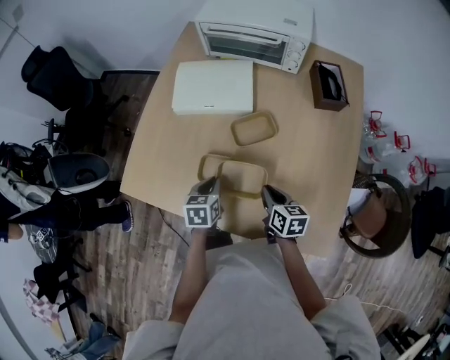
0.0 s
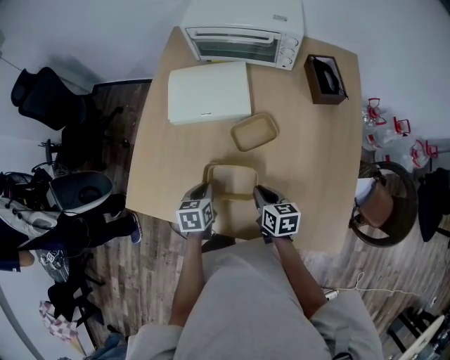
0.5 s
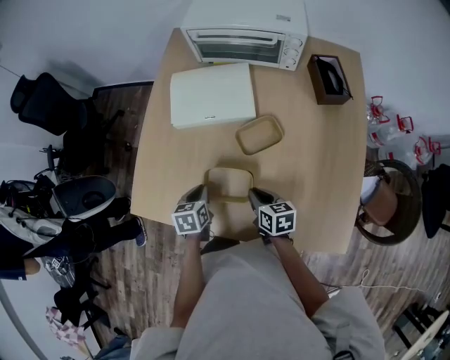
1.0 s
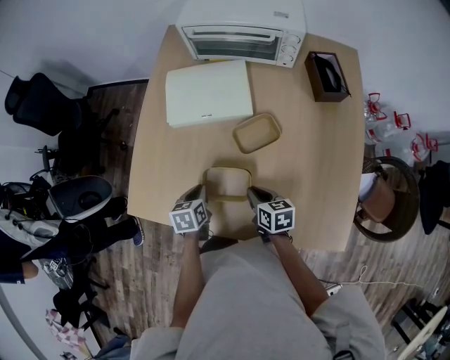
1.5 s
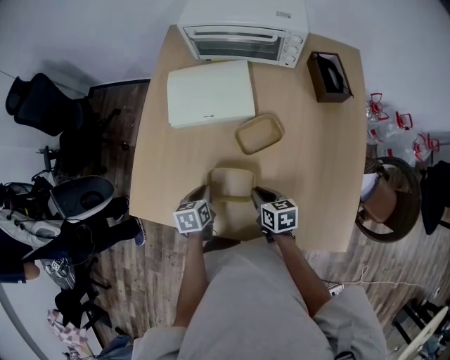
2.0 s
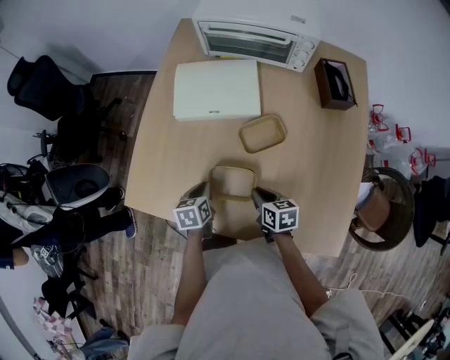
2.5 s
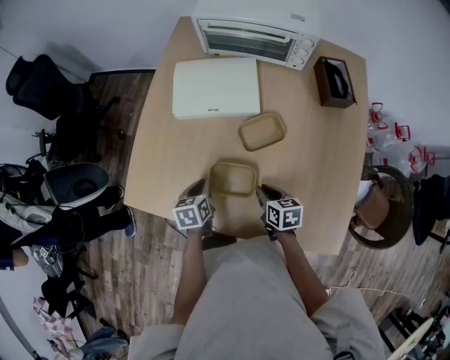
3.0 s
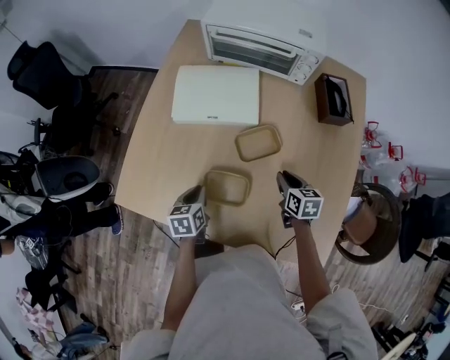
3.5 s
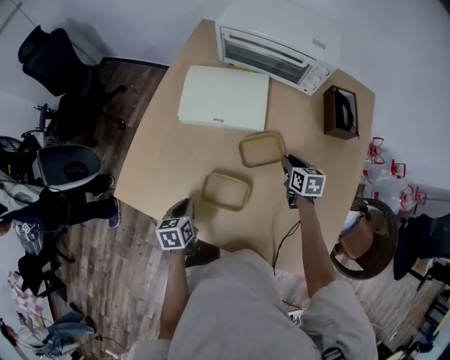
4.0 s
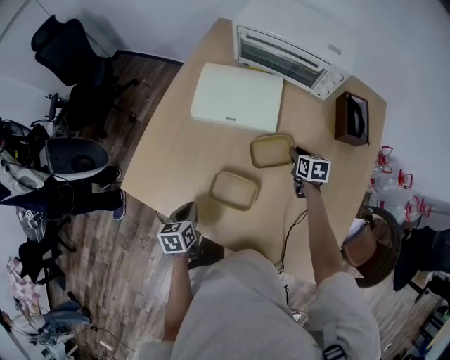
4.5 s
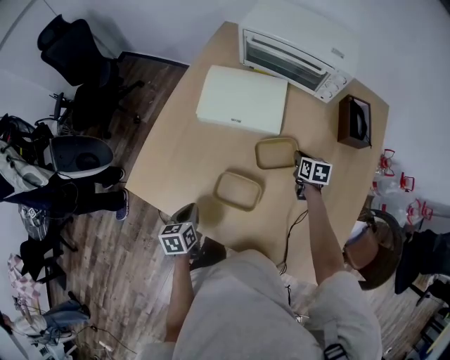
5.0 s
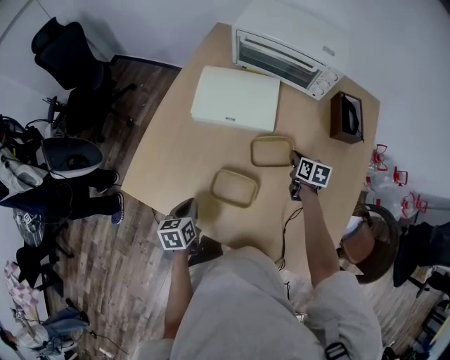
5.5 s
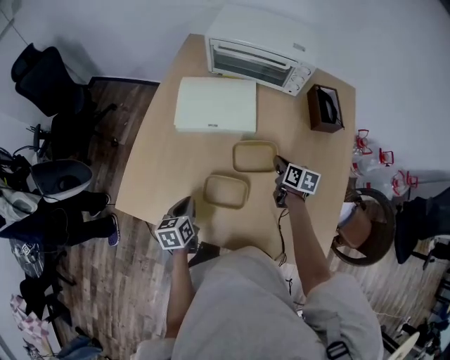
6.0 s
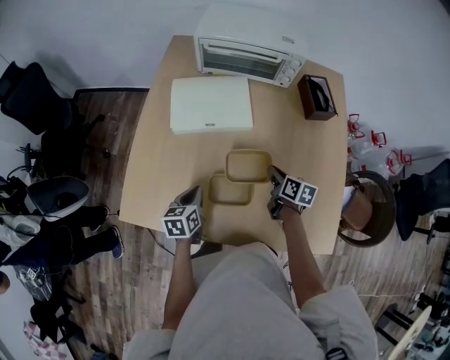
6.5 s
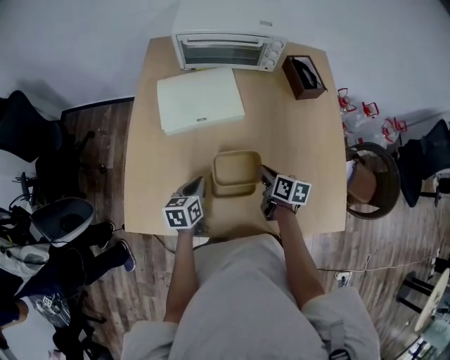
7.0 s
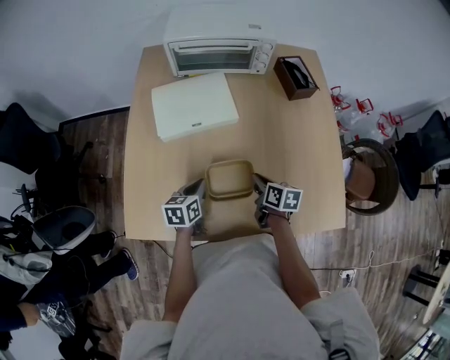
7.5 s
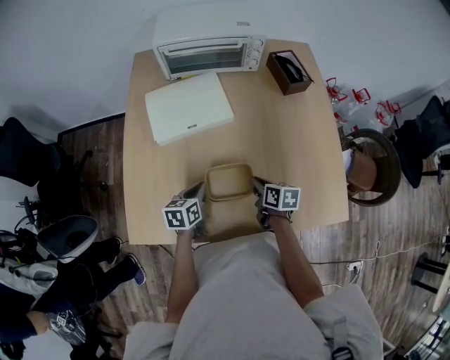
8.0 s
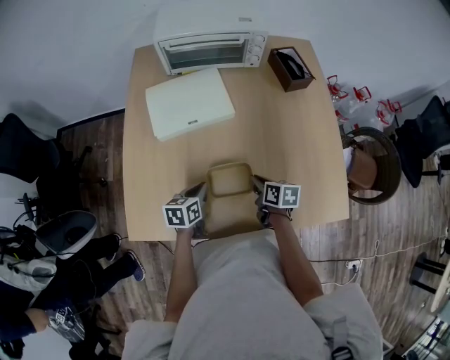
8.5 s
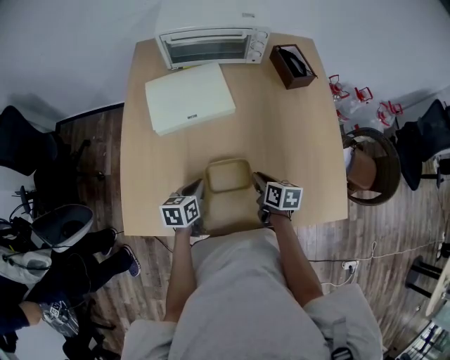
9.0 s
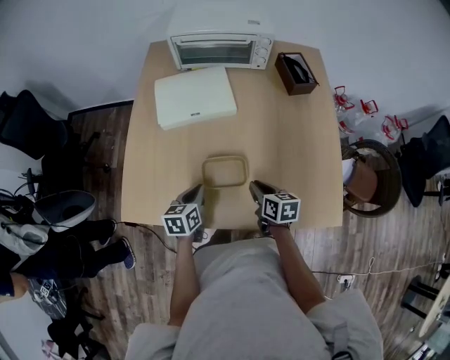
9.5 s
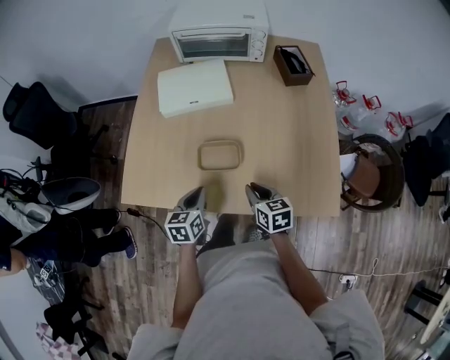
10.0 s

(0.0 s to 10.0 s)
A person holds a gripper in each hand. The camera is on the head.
0.0 s - 2.0 s: The two grippers go some 5 cm to the left.
2.0 s - 4.0 s: The right gripper moves forward and to the right, about 20 cm, while the left gripper shifts by roughly 5 cm.
4.0 s - 6.0 s: There are only small adjustments of the grippers.
6.0 s - 8.0 s: The left gripper ends up about 5 cm from where it was, and rotates about 30 degrees. Meanwhile the right gripper heads backward and to the left, covering about 20 cm.
8.0 s - 10.0 s: The right gripper heads backward and upward, covering roughly 15 cm, and changes its angle by some 30 degrees. The left gripper travels backward by about 15 cm.

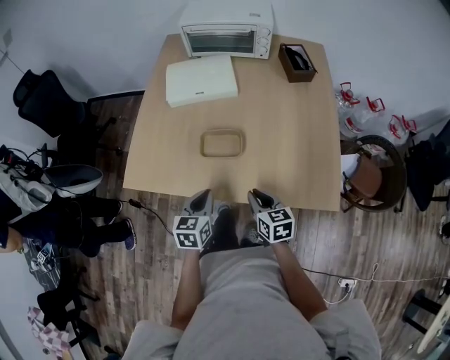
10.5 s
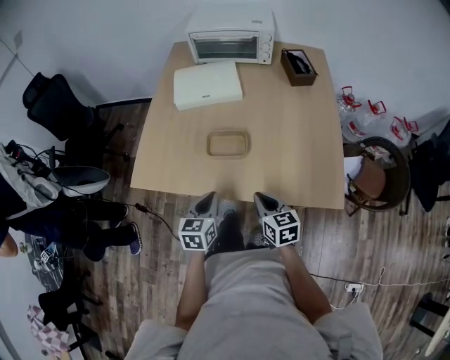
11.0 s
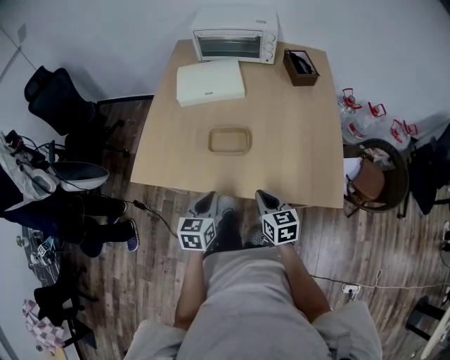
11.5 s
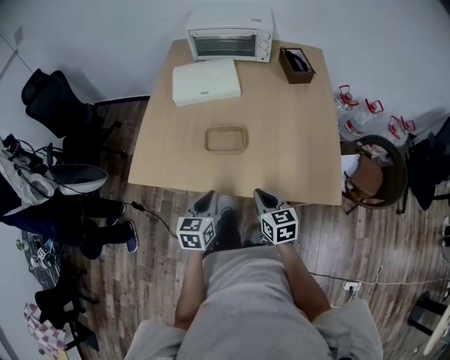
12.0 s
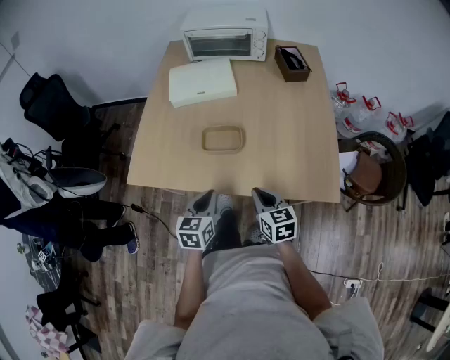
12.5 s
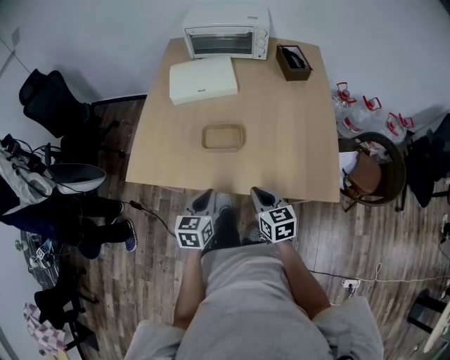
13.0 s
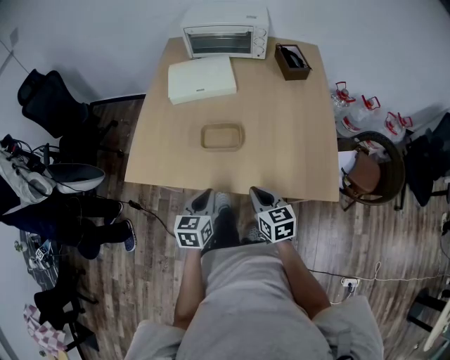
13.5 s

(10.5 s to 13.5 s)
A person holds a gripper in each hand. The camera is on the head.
10.5 s - 12.0 s: The grippers make only small movements.
12.0 s - 13.5 s: Both grippers stay put.

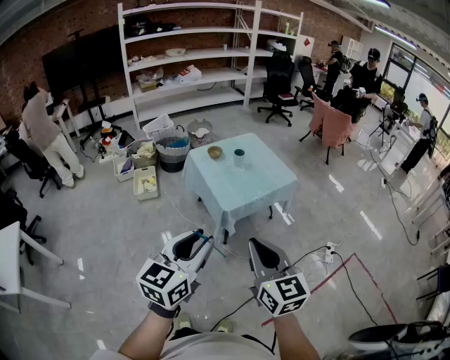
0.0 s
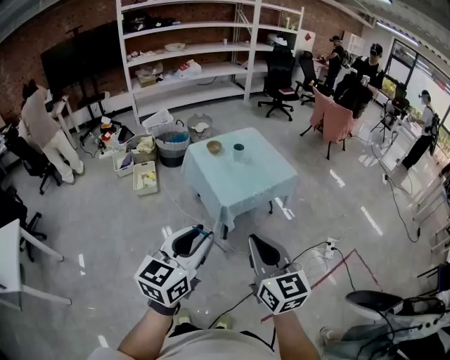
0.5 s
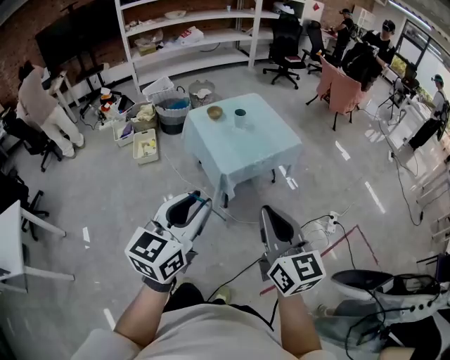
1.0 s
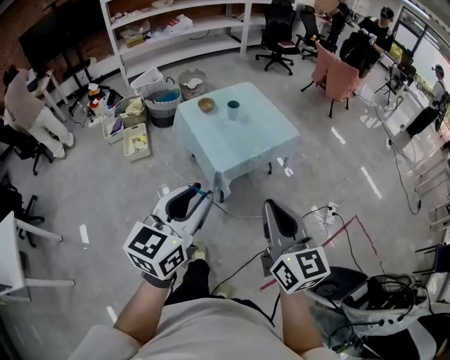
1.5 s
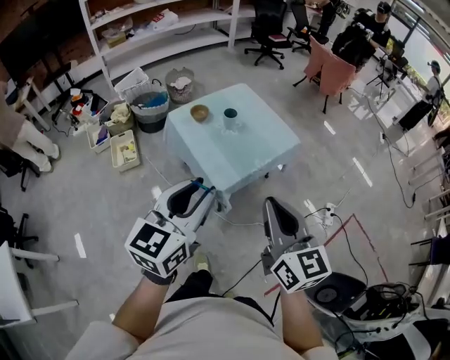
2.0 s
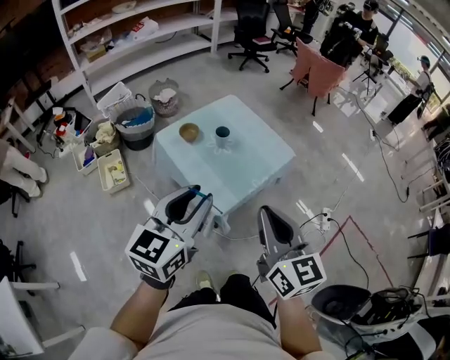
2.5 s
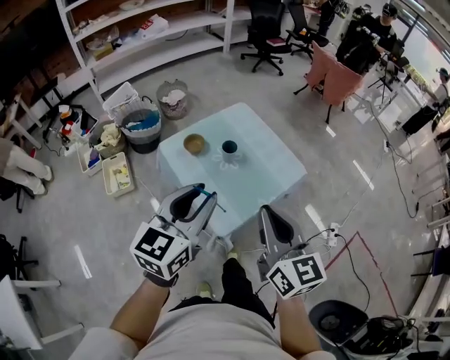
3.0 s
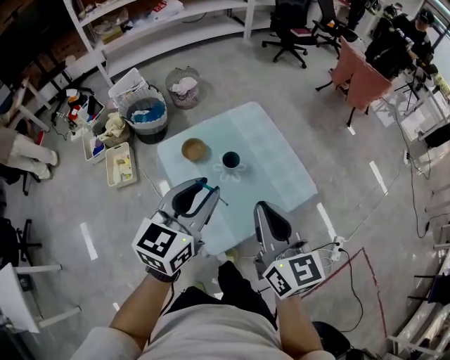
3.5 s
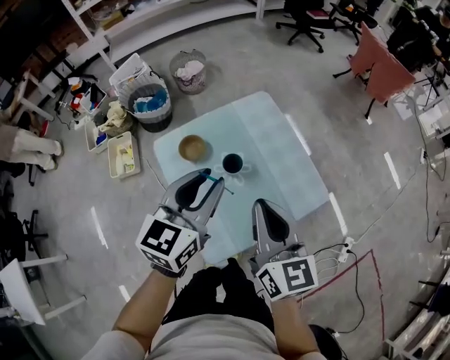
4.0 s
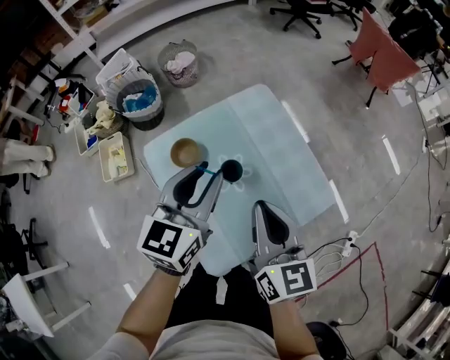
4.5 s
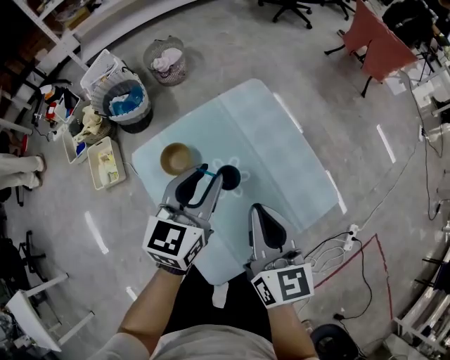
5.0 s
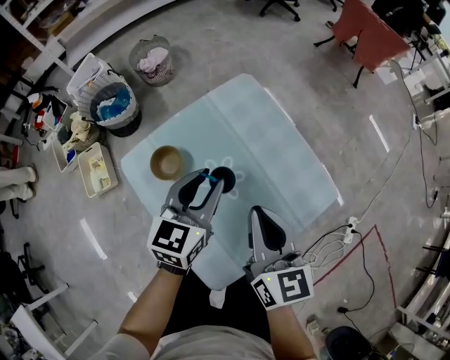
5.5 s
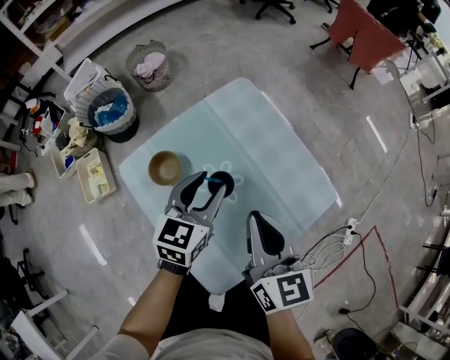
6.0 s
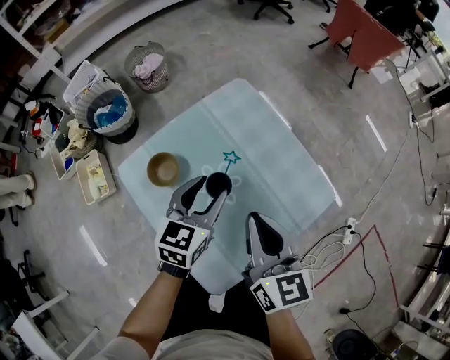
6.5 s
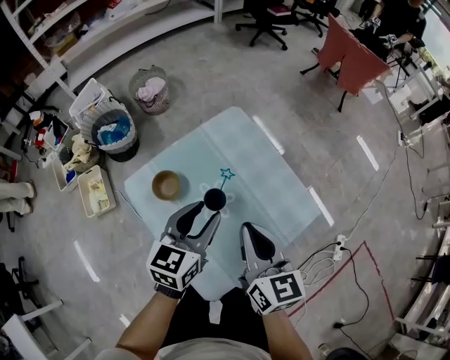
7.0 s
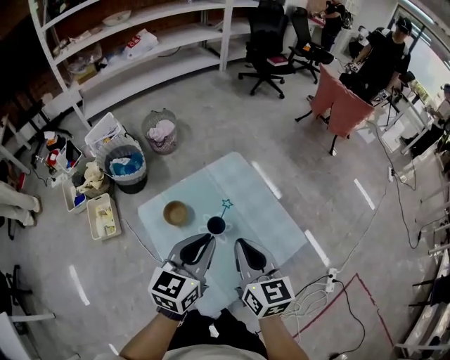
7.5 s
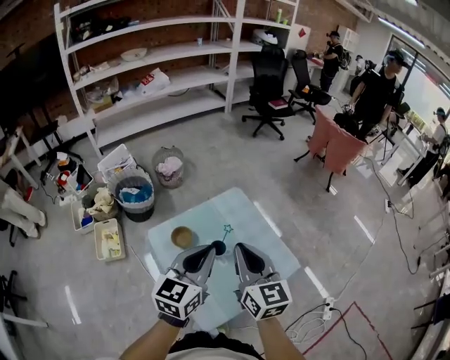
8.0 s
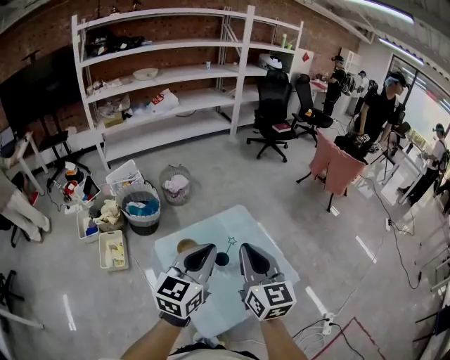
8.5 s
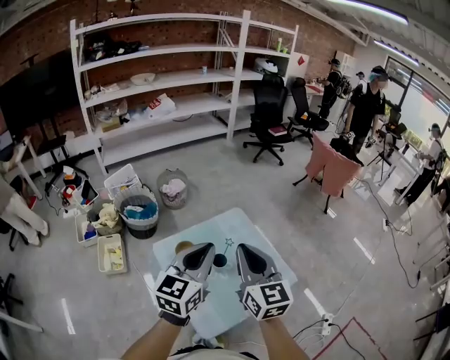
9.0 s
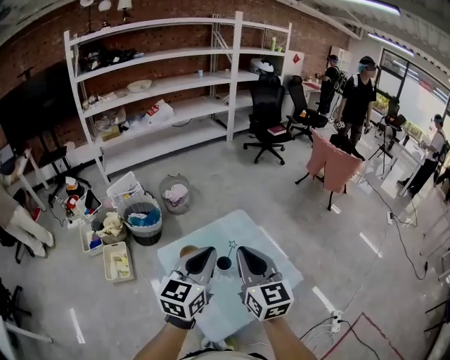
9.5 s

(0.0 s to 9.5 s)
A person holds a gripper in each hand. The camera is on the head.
0.0 s - 2.0 s: Both grippers travel together forward, some 20 cm.
2.0 s - 4.0 s: The pair of grippers is taken forward, approximately 50 cm.
4.0 s - 5.5 s: Both grippers travel together downward and forward, some 20 cm.
5.5 s - 7.5 s: The right gripper goes roughly 10 cm upward. The left gripper travels upward and backward by some 20 cm.
7.5 s - 9.5 s: Both grippers move upward, roughly 15 cm.

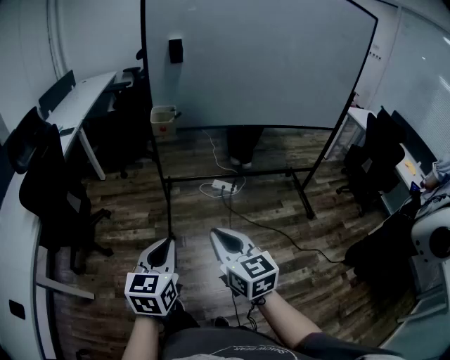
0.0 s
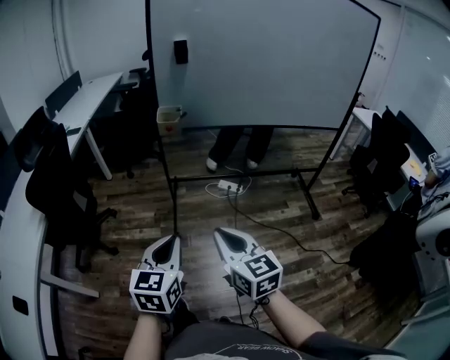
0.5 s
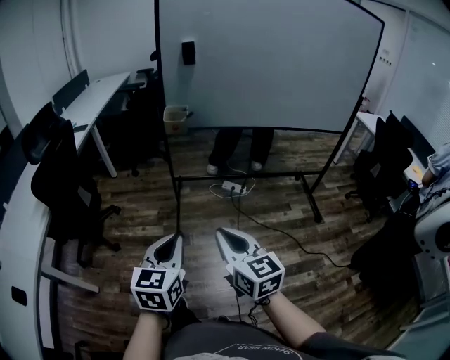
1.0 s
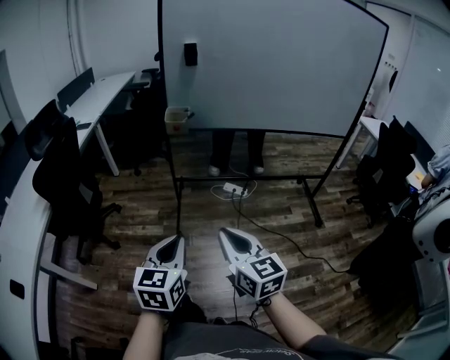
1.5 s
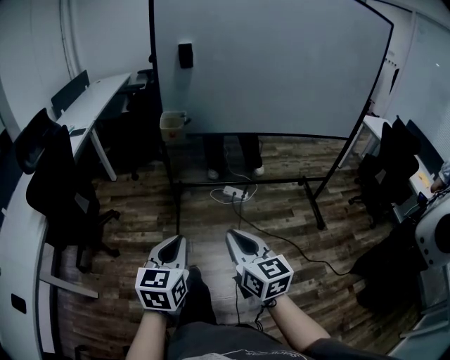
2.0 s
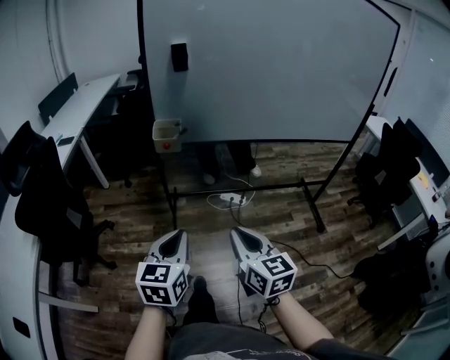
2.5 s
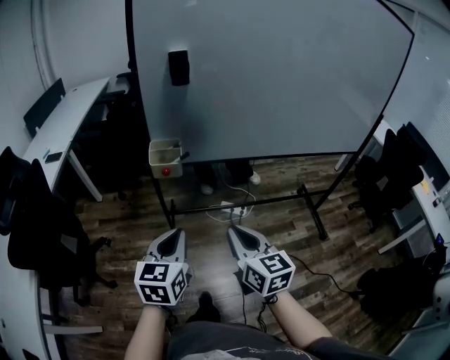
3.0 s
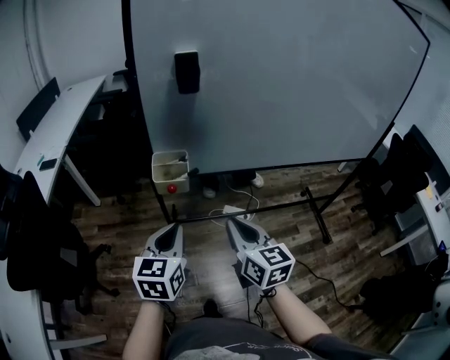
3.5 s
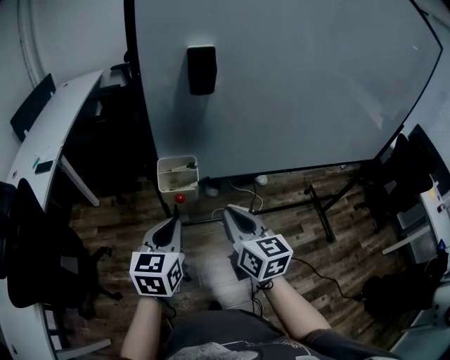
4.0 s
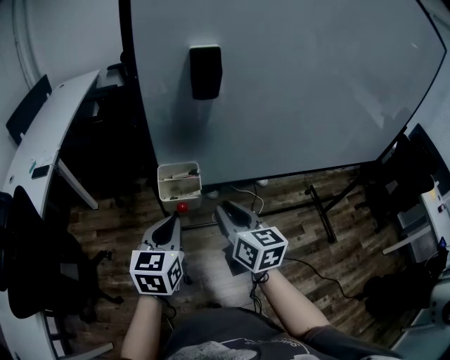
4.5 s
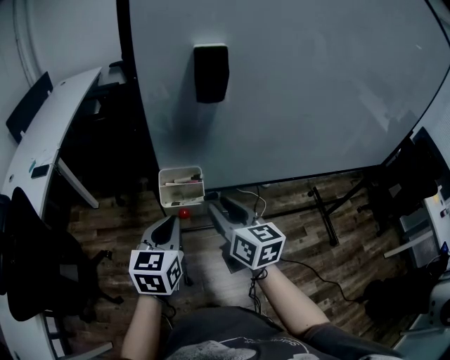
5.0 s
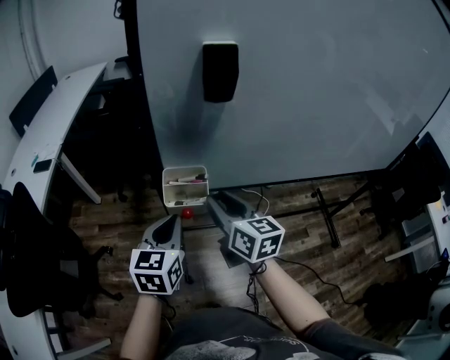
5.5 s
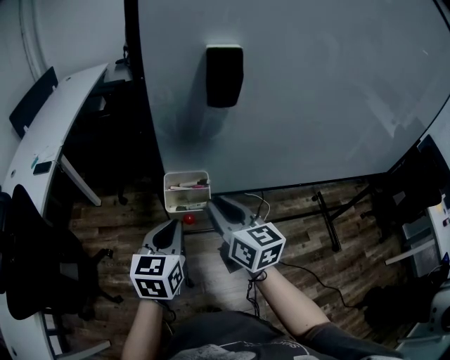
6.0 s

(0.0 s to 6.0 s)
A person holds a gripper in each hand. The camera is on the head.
0.0 s - 2.0 s: The right gripper changes place by roughly 5 cm; the left gripper moves about 5 cm.
2.0 s - 4.0 s: The two grippers travel together, forward, roughly 40 cm.
4.0 s - 6.0 s: The left gripper shifts some 5 cm forward. The right gripper goes some 10 cm forward and to the left.
